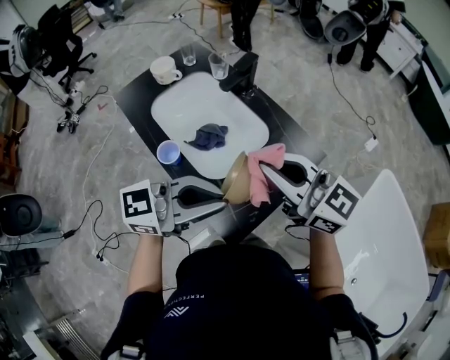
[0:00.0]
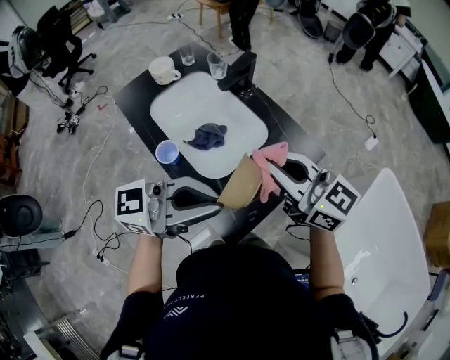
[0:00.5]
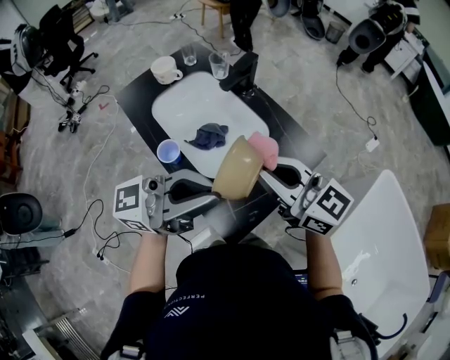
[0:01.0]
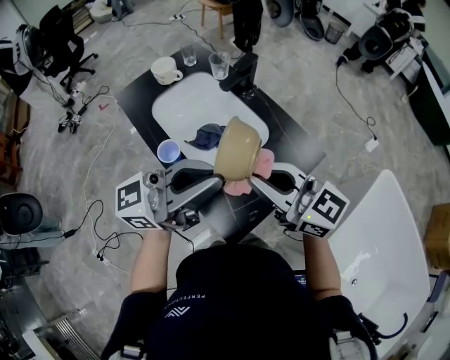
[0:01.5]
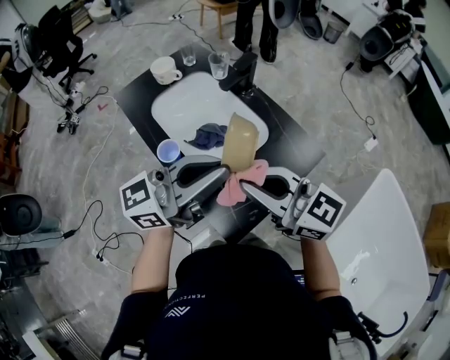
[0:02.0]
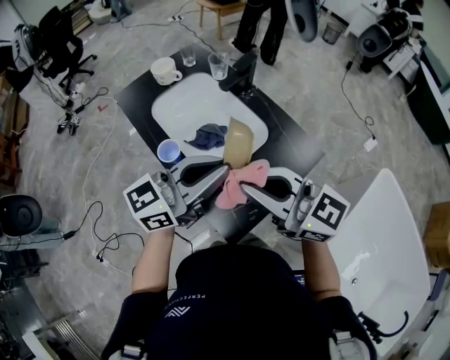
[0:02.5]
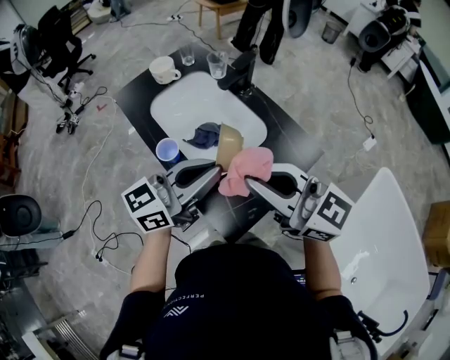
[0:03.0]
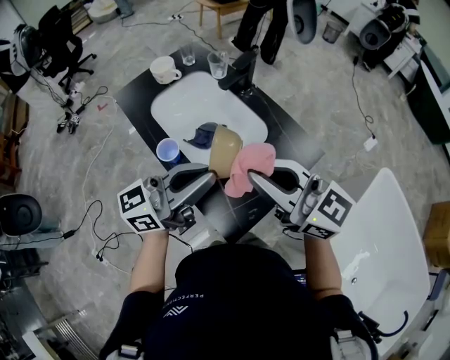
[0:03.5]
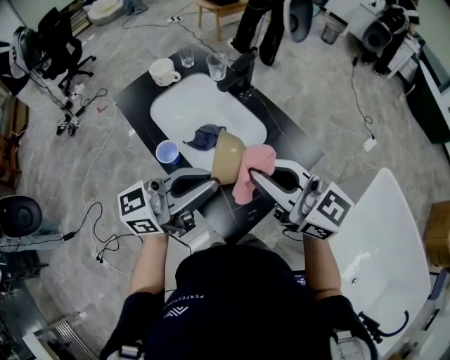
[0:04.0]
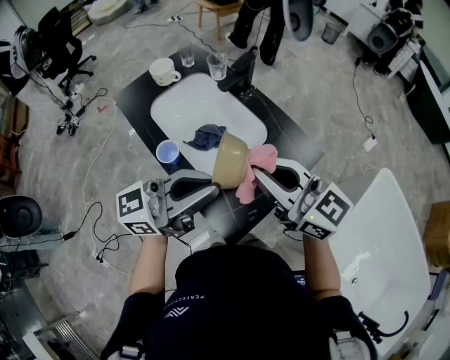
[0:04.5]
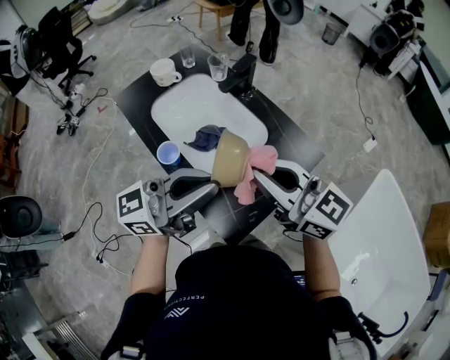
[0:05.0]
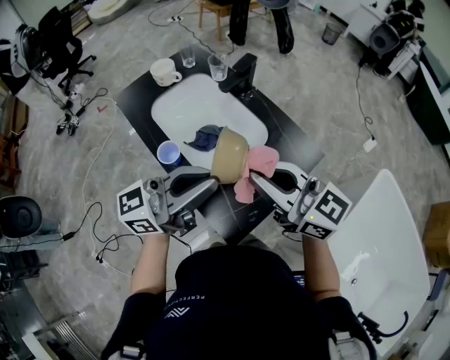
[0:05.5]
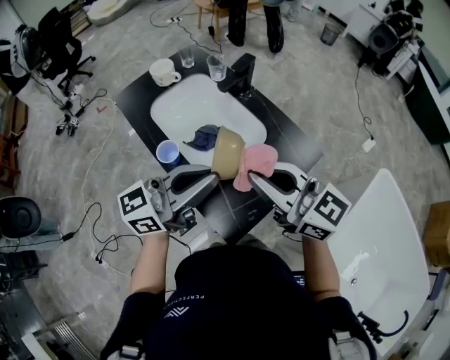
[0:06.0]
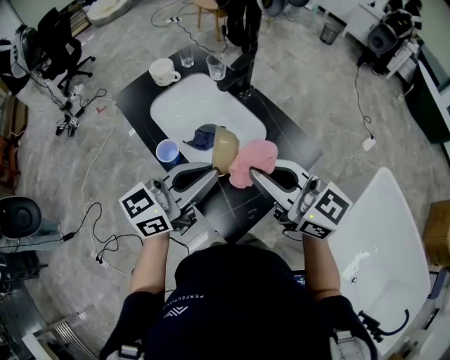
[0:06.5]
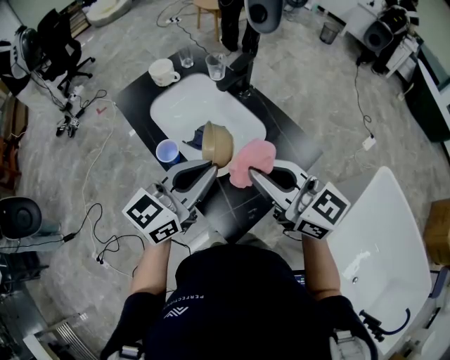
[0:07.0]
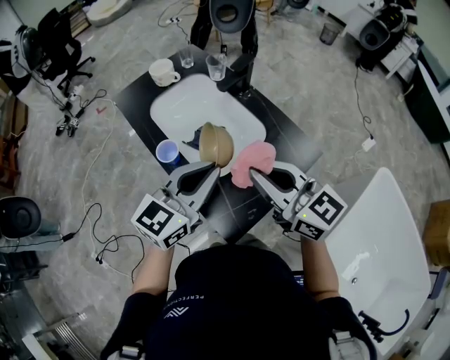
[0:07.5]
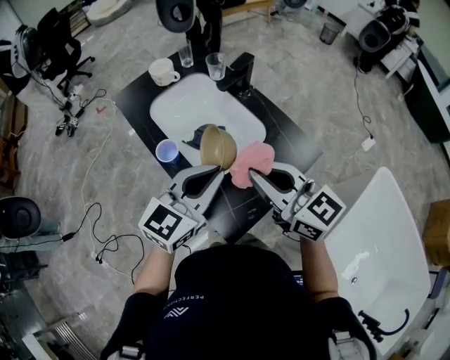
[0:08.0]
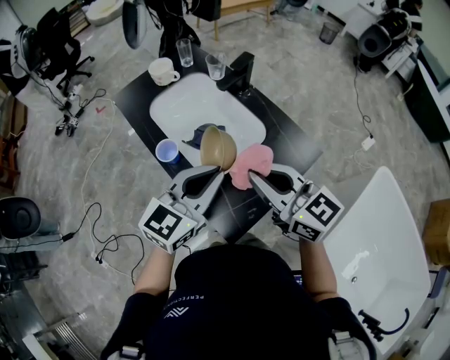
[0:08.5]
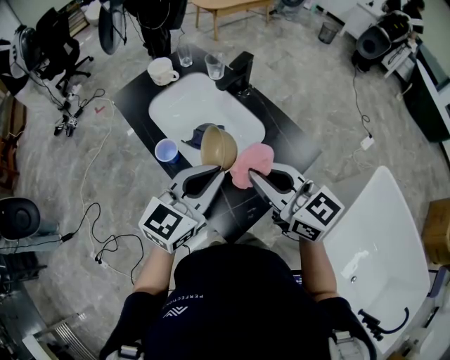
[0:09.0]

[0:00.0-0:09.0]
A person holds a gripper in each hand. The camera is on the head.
0:00.0 to 0:02.0: The left gripper ends up some 5 cm from where it was. Meanwhile the right gripper shifts by about 5 cm.
0:02.0 to 0:04.5: The grippers stay close to where they were, moving slightly.
0:04.5 to 0:07.0: The left gripper moves some 5 cm, and changes its angle by some 30 degrees.
0:07.0 to 0:09.0: The grippers make only small movements.

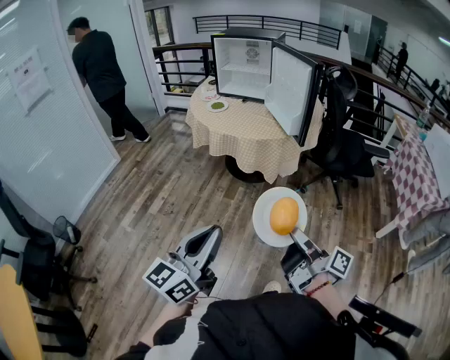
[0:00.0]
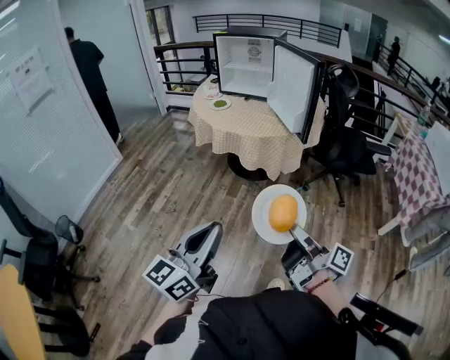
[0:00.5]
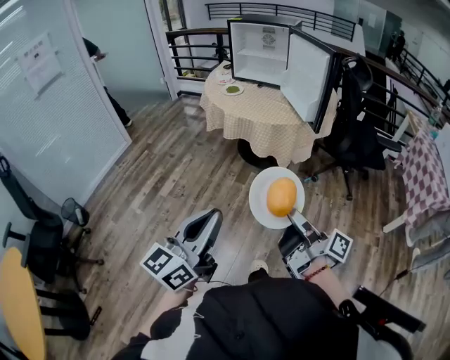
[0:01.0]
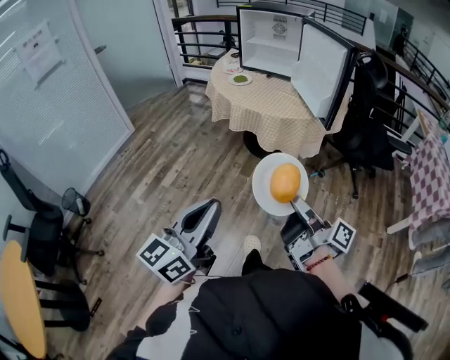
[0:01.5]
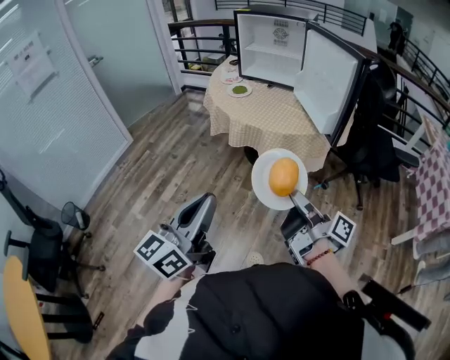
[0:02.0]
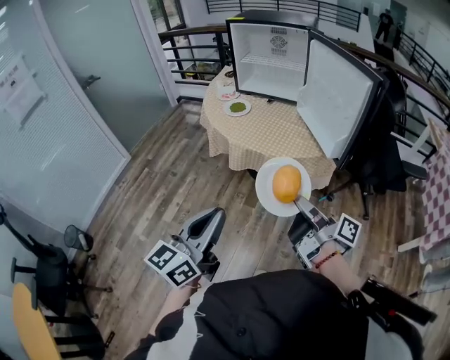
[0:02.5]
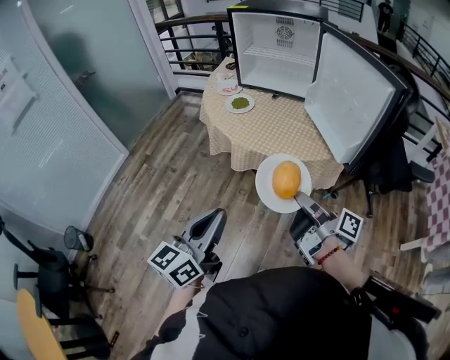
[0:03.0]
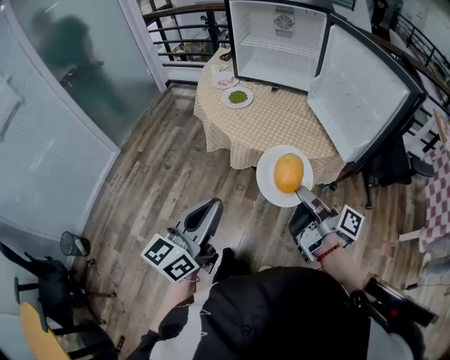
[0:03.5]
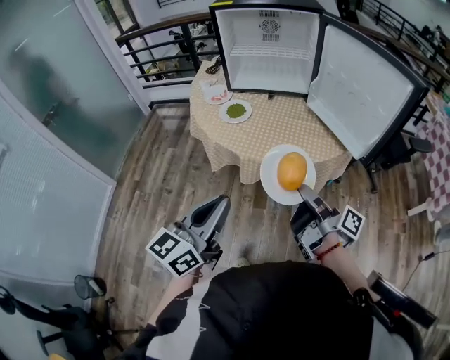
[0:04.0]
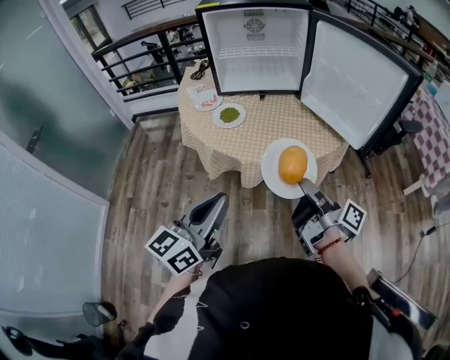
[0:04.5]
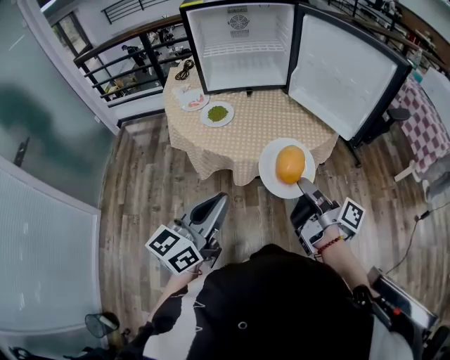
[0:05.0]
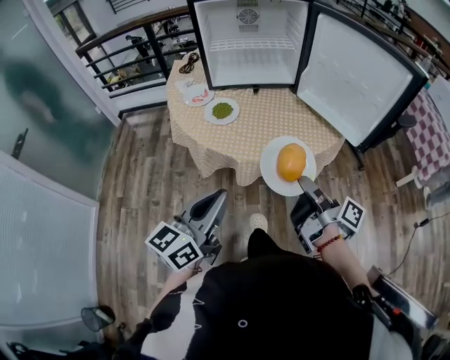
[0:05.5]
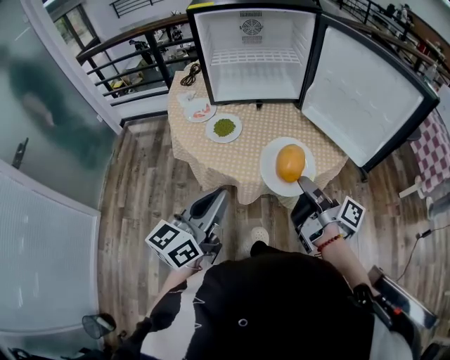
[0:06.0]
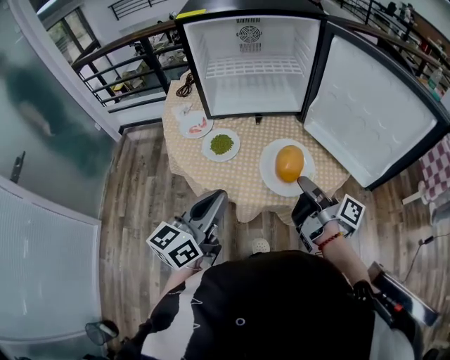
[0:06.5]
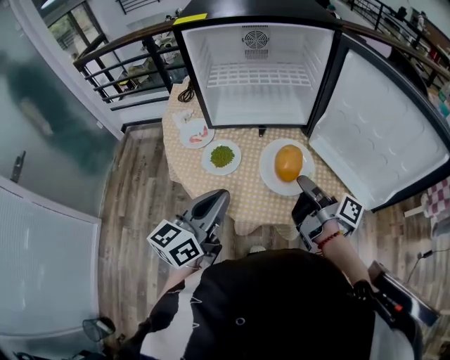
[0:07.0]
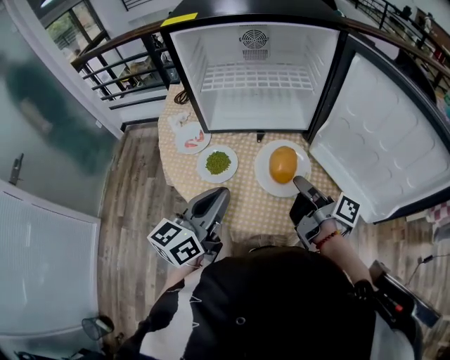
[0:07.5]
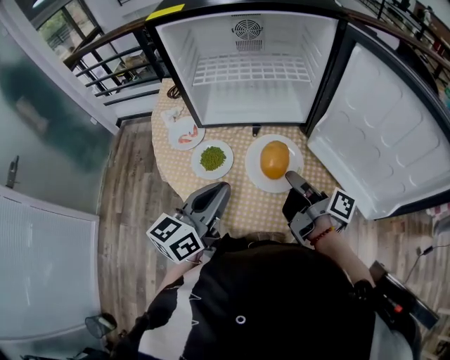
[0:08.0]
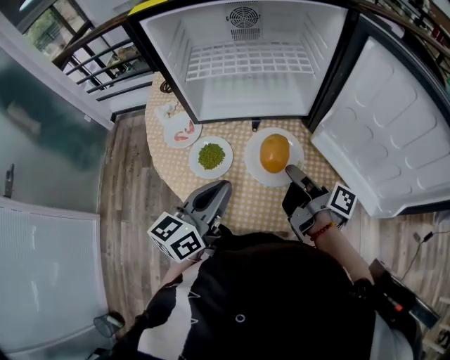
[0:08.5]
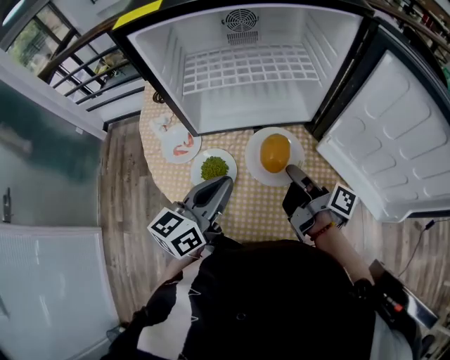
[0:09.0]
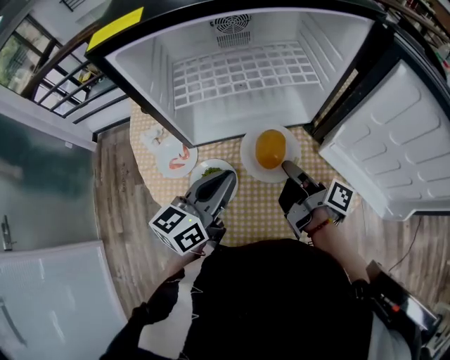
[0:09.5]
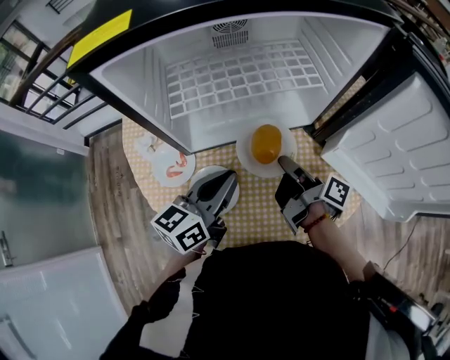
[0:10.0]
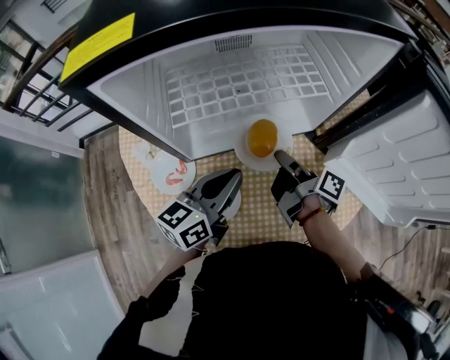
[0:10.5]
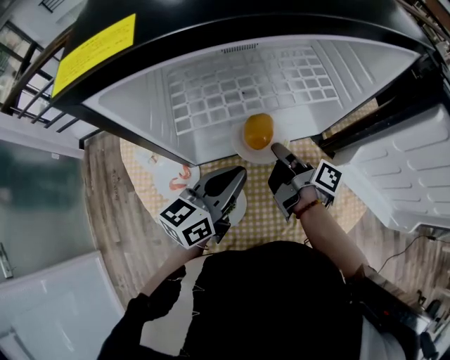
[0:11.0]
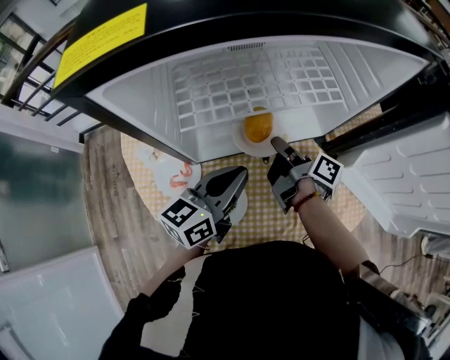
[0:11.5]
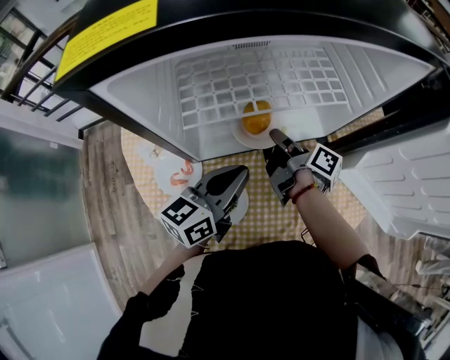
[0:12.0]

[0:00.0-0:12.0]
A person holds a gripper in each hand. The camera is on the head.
0:00.0 to 0:02.0: Both grippers travel together forward and to the left, roughly 20 cm.
0:02.0 to 0:04.0: The right gripper shifts about 30 cm forward and to the left. The left gripper goes roughly 30 cm forward, and changes its angle by roughly 20 degrees.
0:04.0 to 0:06.0: The right gripper travels forward by approximately 10 cm. Meanwhile the left gripper heads forward and to the left, covering approximately 15 cm.
0:06.0 to 0:08.0: Both grippers travel together forward, about 20 cm.
0:08.0 to 0:10.0: The right gripper heads forward and to the left, covering some 15 cm; the left gripper goes some 15 cm forward.
0:10.0 to 0:12.0: The left gripper shifts by approximately 5 cm. The right gripper travels forward and to the left by approximately 10 cm.

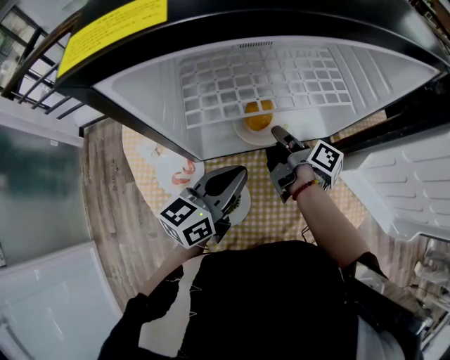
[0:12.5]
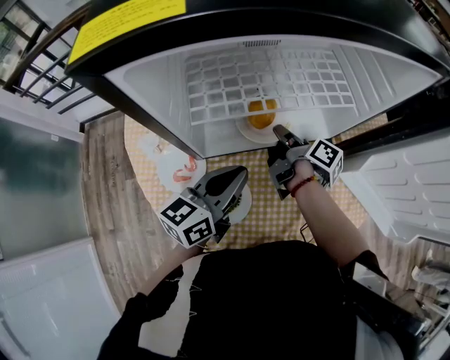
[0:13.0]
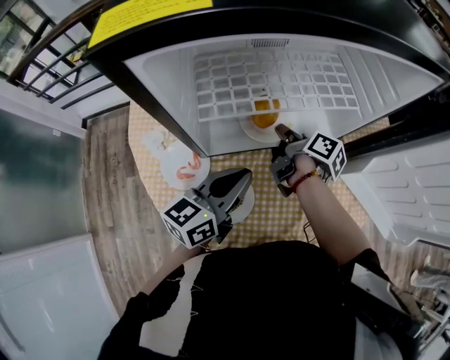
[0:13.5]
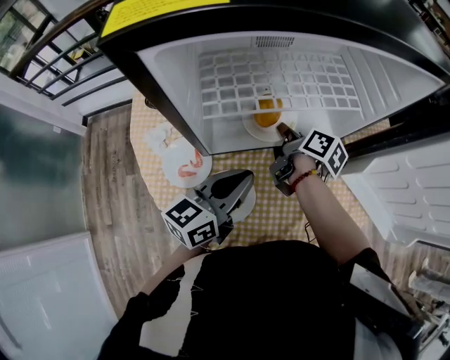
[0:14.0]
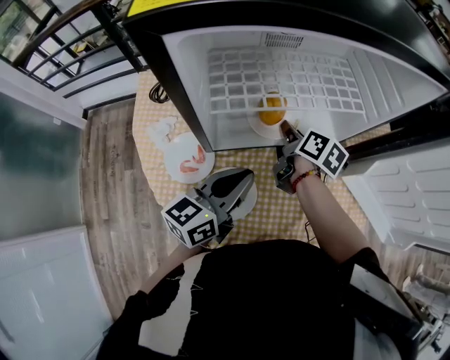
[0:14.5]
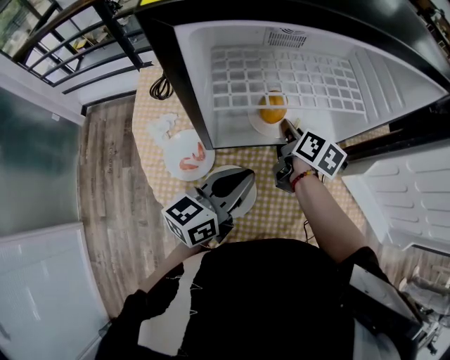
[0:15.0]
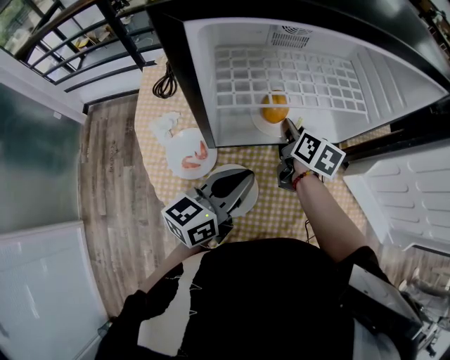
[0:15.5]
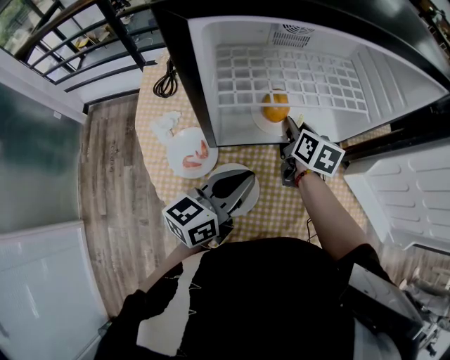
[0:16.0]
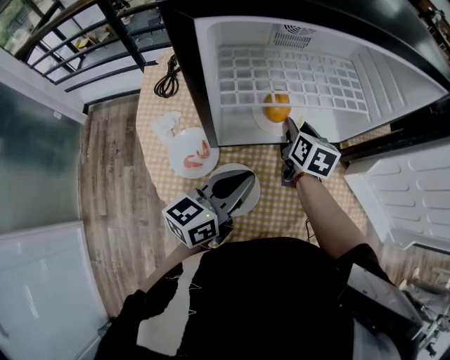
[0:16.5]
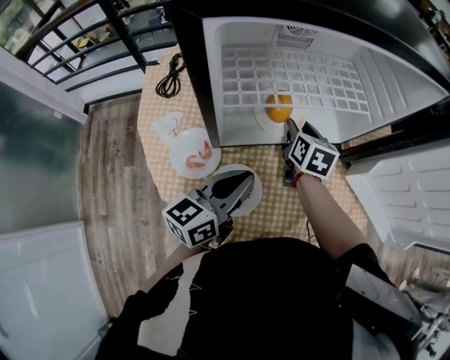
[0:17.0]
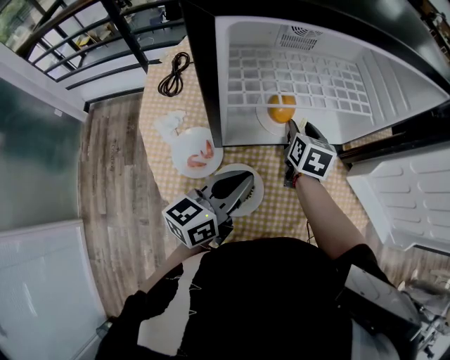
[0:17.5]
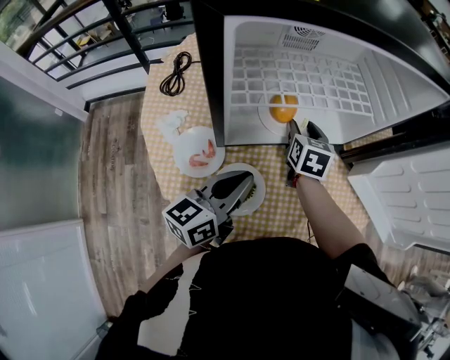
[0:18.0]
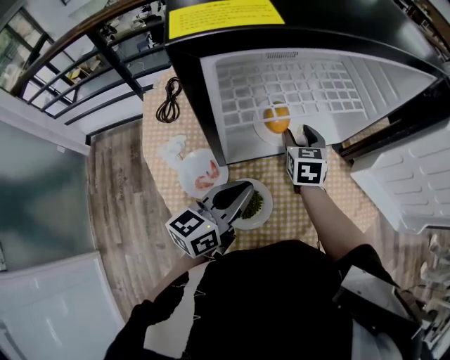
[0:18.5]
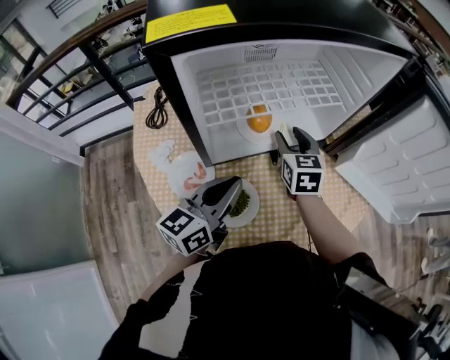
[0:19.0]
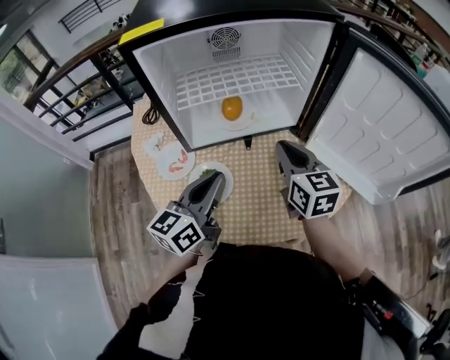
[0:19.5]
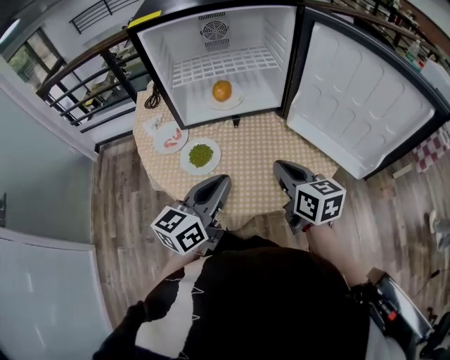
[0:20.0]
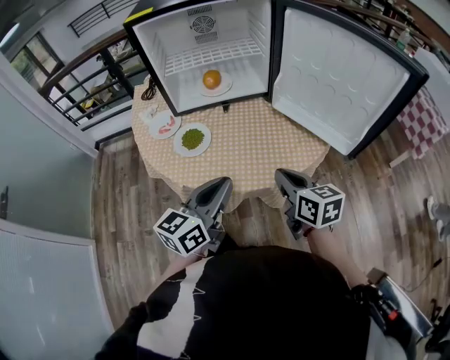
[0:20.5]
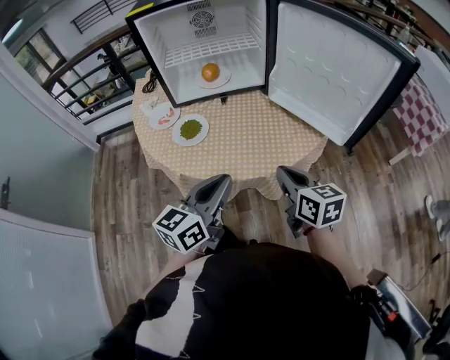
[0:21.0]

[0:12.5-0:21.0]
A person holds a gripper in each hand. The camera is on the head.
0:12.5 to 0:14.5: The right gripper rotates approximately 40 degrees.
0:14.5 to 0:16.5: The right gripper swivels about 30 degrees, and opens its fingers.
0:16.5 to 0:19.0: The right gripper changes place by approximately 5 cm, and rotates some 20 degrees.
0:19.0 to 0:21.0: The two grippers go some 40 cm backward and to the right. The right gripper turns by roughly 30 degrees, and closes up.
